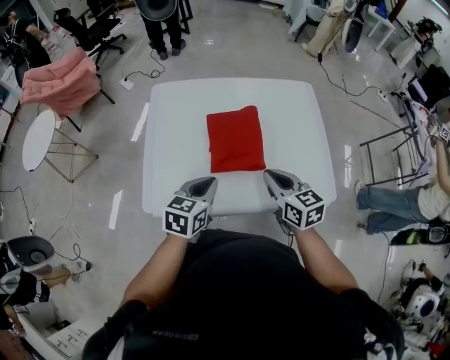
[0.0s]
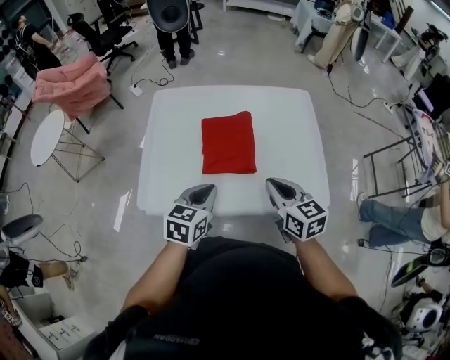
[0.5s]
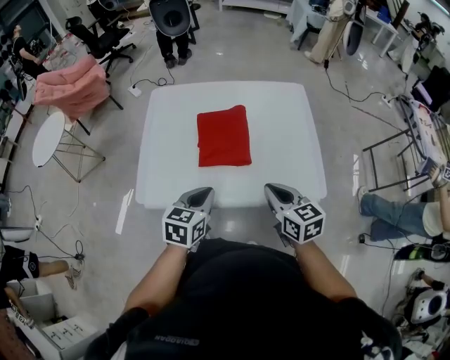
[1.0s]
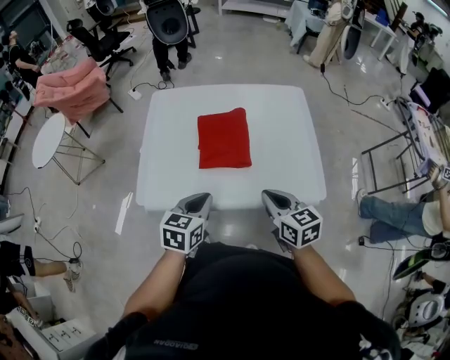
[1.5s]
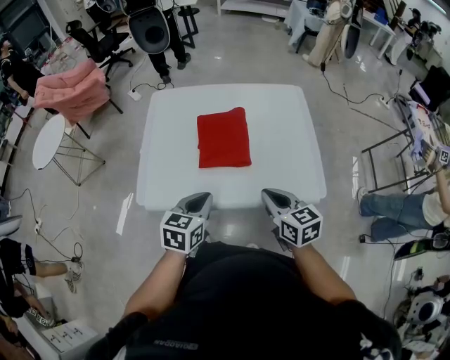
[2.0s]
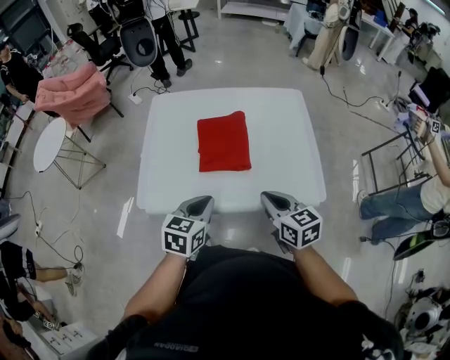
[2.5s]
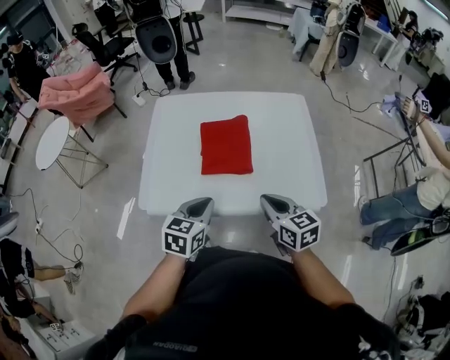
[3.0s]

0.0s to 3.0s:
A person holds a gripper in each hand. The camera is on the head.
0.0s to 1.5s: The left gripper goes about 10 cm backward. The right gripper shifts roughly 10 cm backward and to the right.
1.5s to 3.0s: Neither gripper changes place.

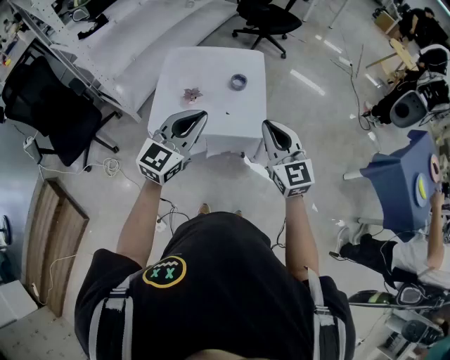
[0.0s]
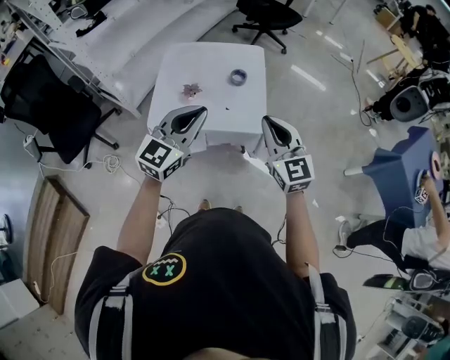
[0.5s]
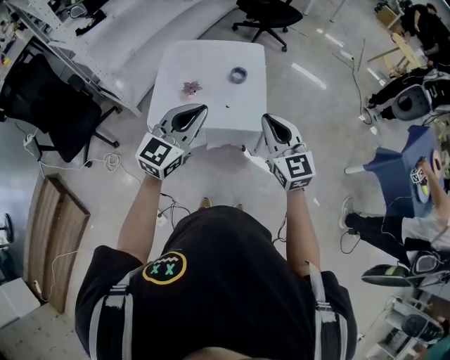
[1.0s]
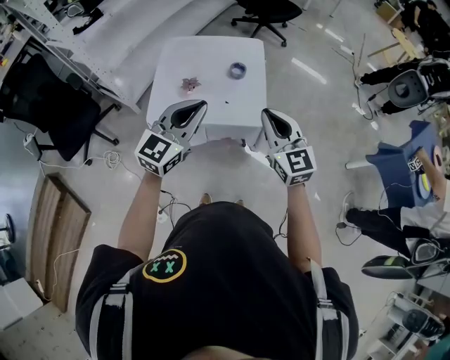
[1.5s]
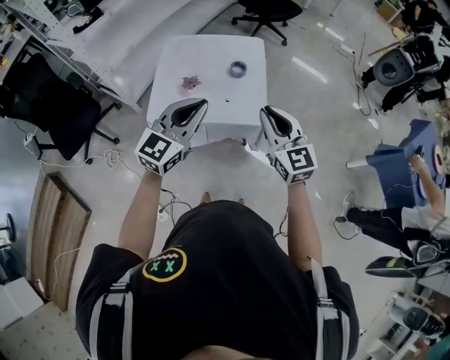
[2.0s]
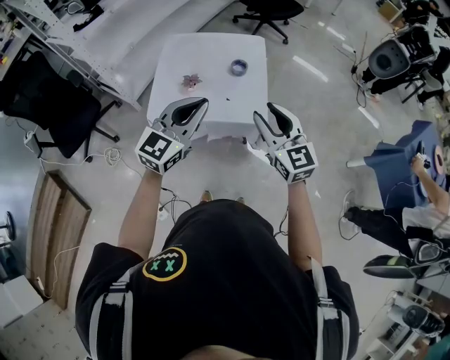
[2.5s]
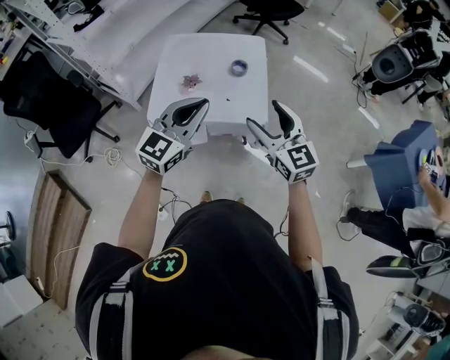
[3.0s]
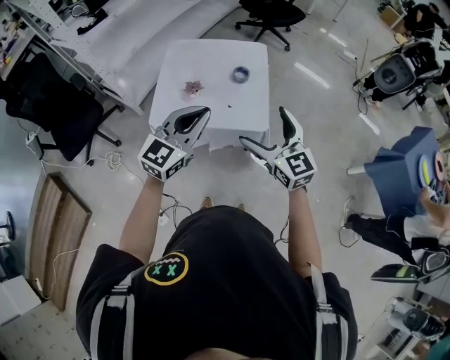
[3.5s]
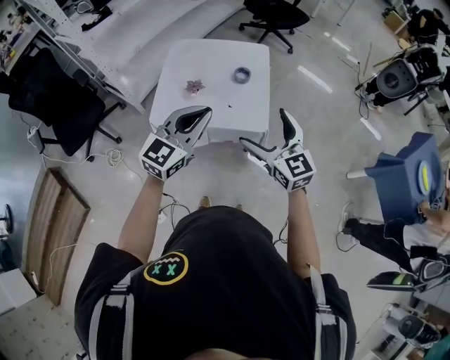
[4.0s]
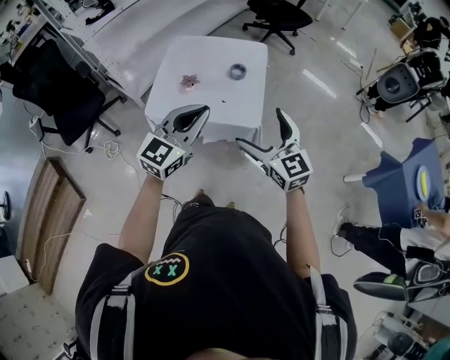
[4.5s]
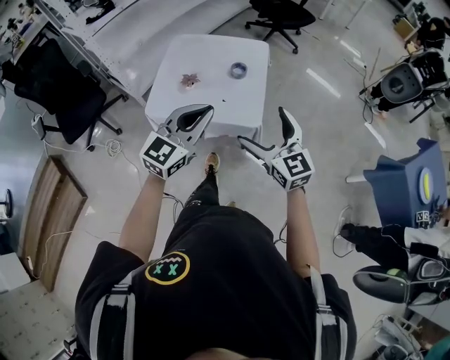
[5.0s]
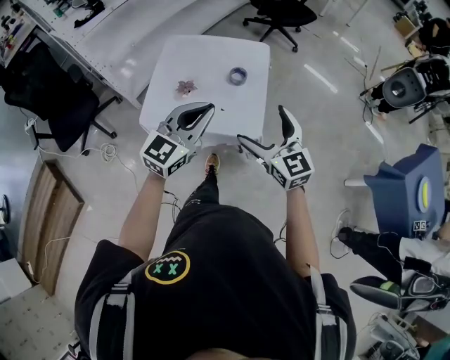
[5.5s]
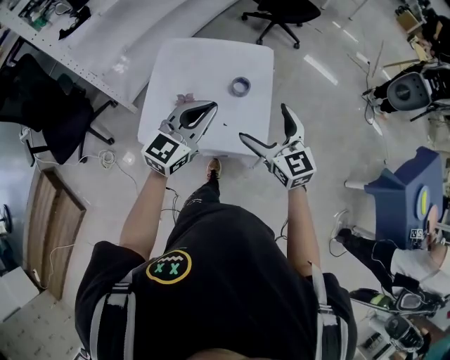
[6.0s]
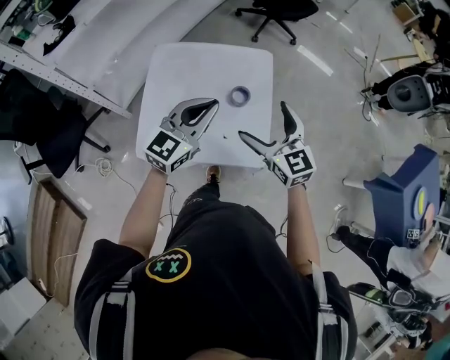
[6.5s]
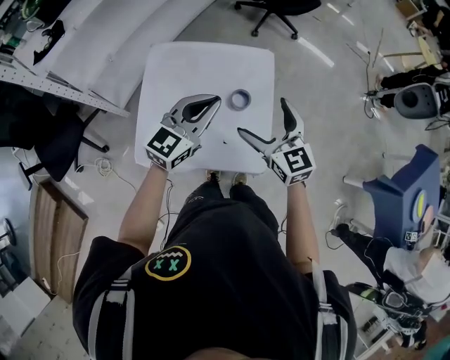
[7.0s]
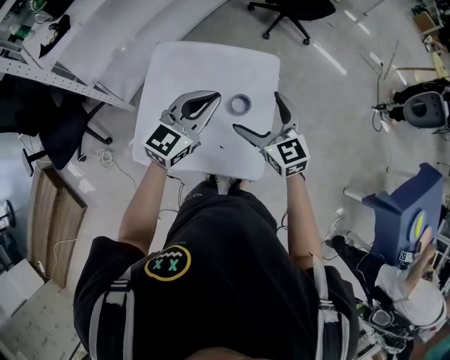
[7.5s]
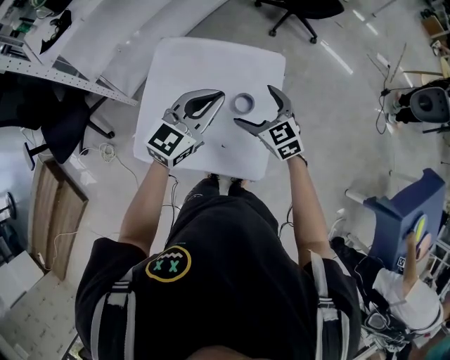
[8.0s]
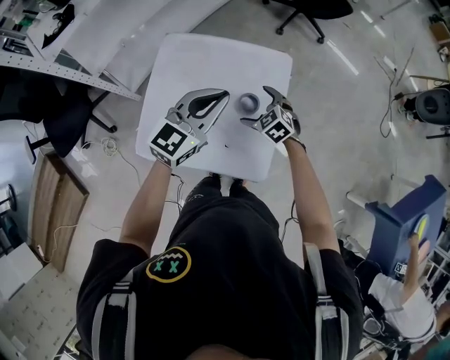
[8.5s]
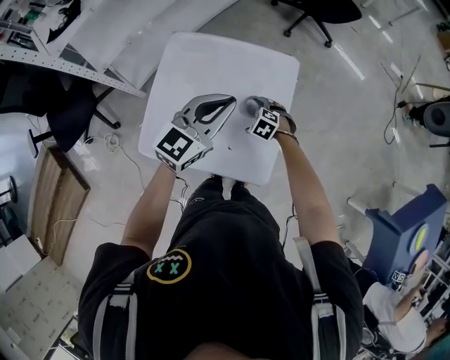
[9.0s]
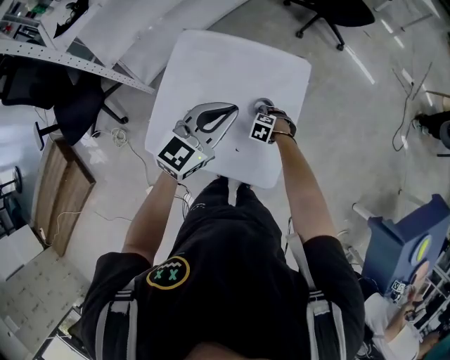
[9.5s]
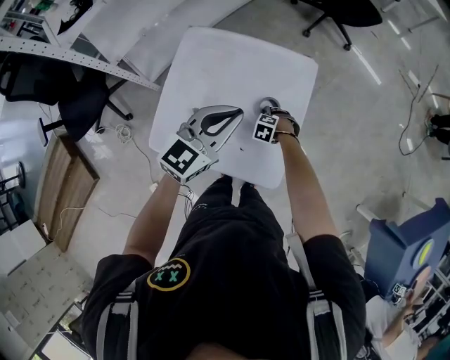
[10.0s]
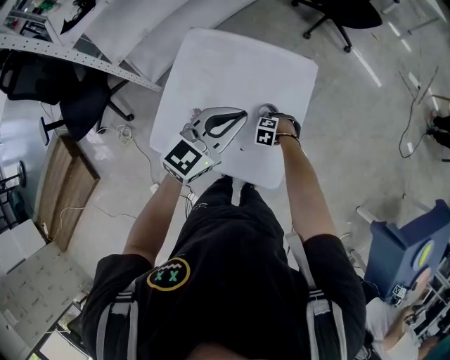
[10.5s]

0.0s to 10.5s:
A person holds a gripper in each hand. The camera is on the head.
0.0s to 2.0s: The grippers move only a little.
2.0s to 4.0s: The right gripper opens.
4.0s to 6.5s: The grippers both shift forward by approximately 30 cm.
6.5s to 8.5s: The right gripper shifts roughly 25 cm downward and forward, and tilts its fingers approximately 40 degrees downward. The left gripper goes roughly 10 cm forward.
8.5s to 10.5s: The right gripper heads downward, covering about 20 cm, angles its fingers downward, by about 30 degrees, and closes up.

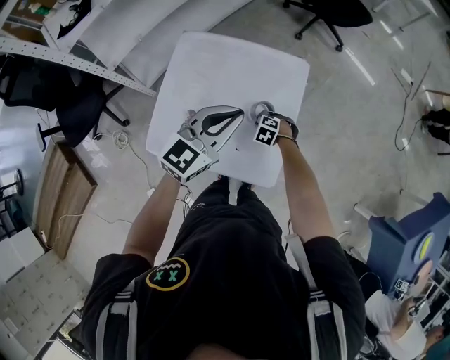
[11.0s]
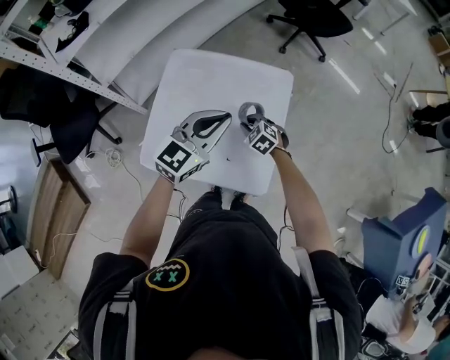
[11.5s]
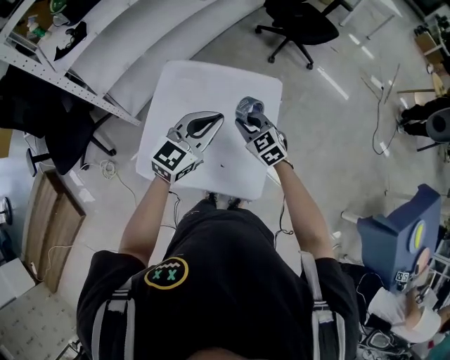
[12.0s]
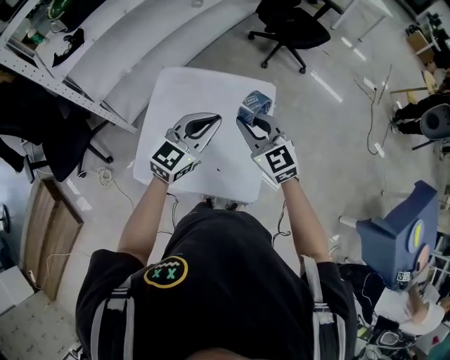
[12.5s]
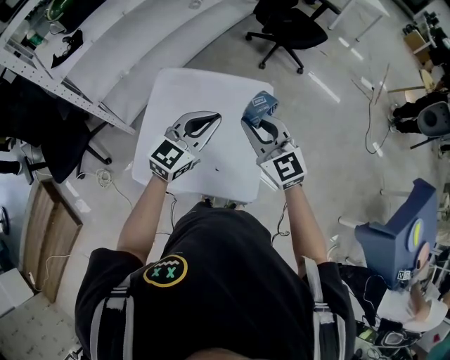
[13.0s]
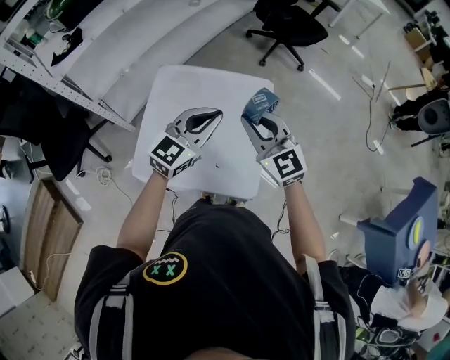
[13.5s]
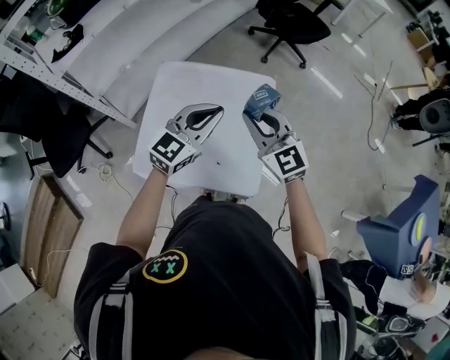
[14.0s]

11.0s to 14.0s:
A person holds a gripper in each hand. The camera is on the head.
11.0s to 12.5s: The right gripper shifts some 40 cm upward, and points its fingers approximately 60 degrees further upward.
12.5s to 14.0s: There are only small adjustments of the grippers.

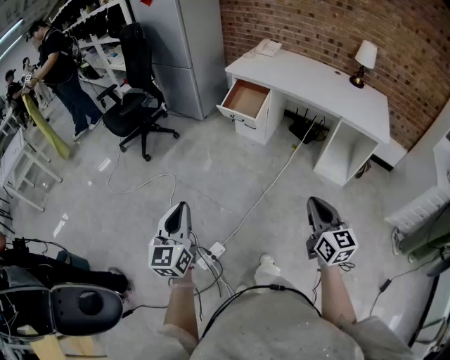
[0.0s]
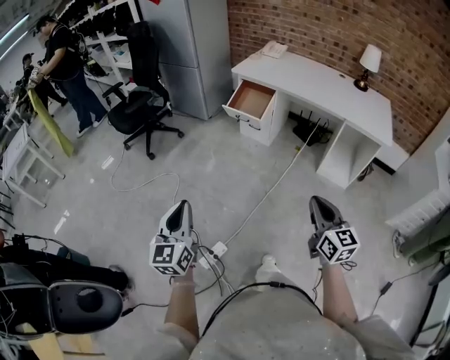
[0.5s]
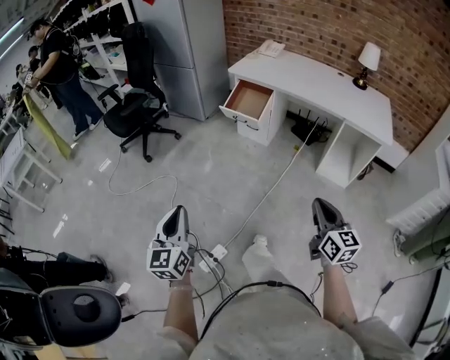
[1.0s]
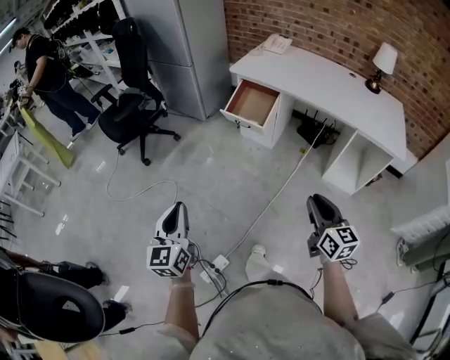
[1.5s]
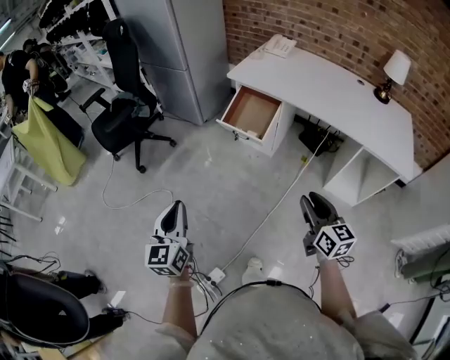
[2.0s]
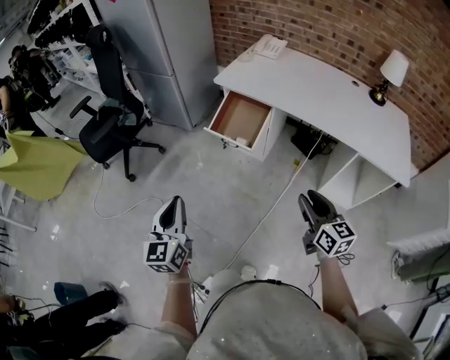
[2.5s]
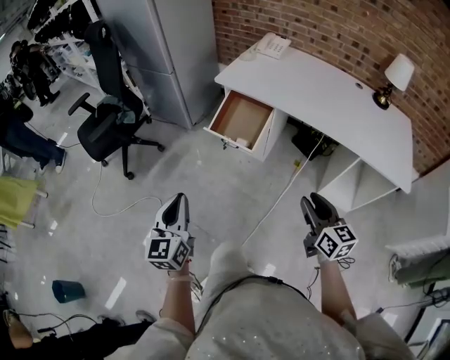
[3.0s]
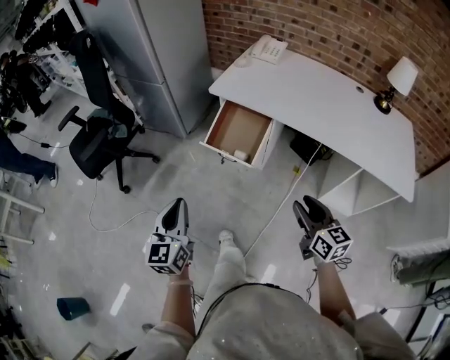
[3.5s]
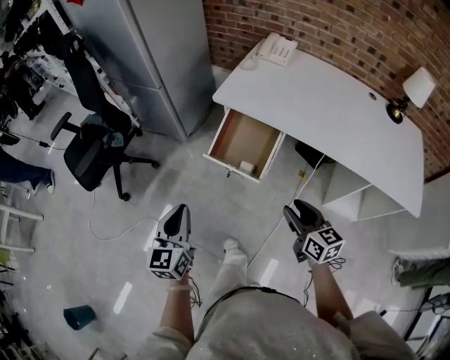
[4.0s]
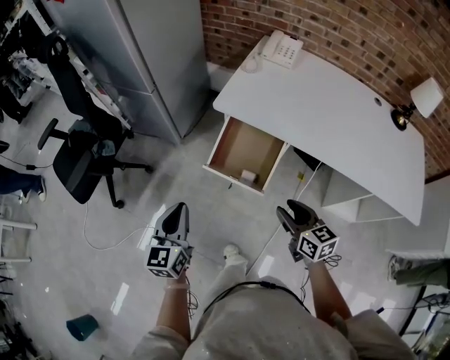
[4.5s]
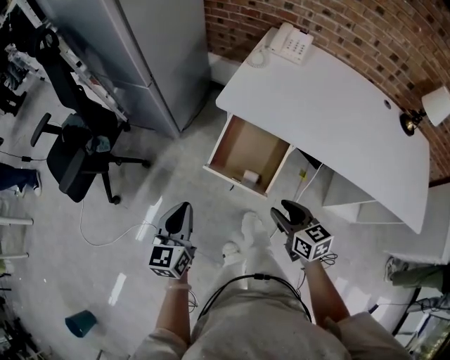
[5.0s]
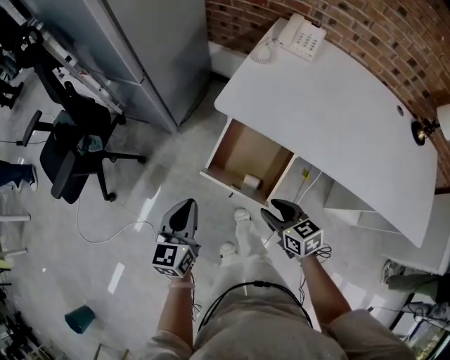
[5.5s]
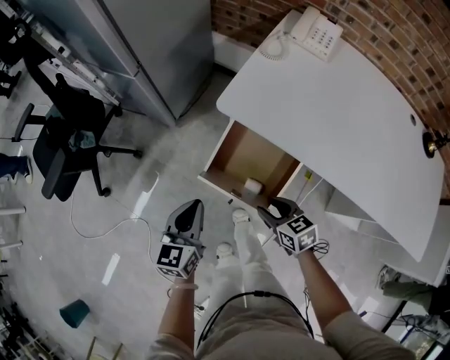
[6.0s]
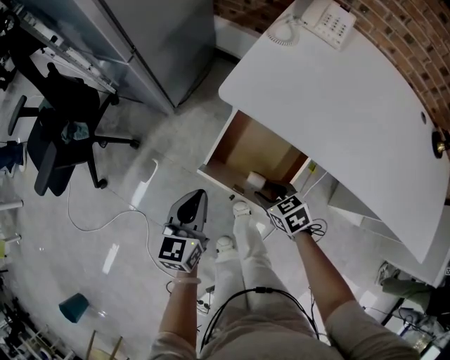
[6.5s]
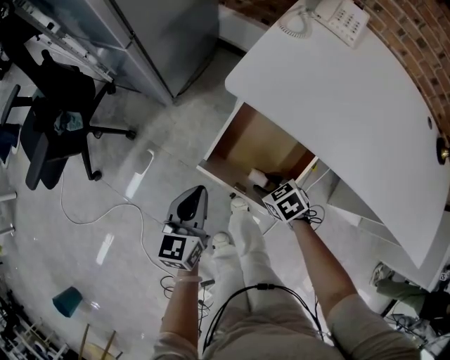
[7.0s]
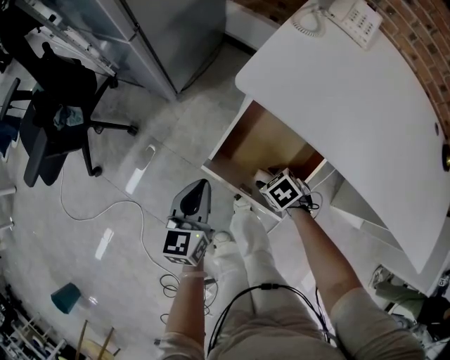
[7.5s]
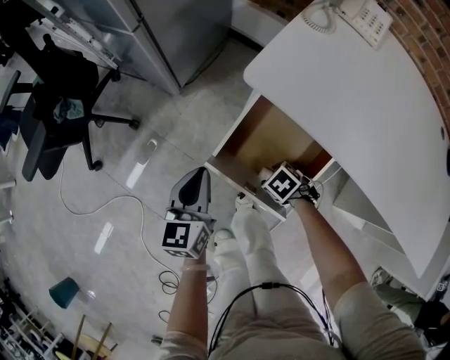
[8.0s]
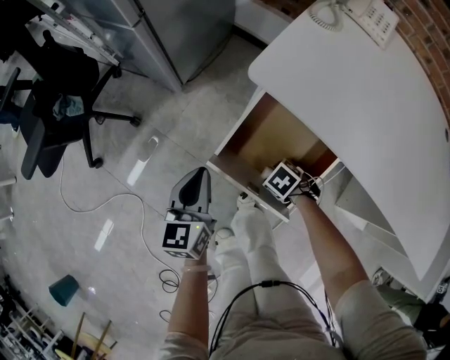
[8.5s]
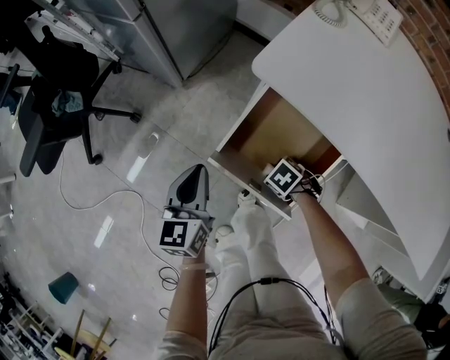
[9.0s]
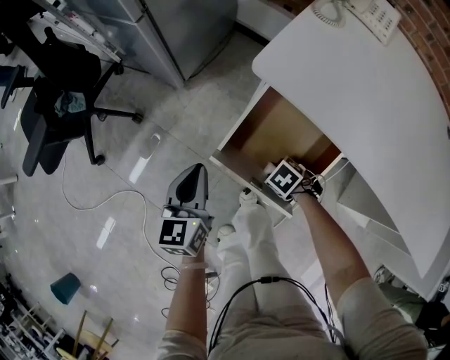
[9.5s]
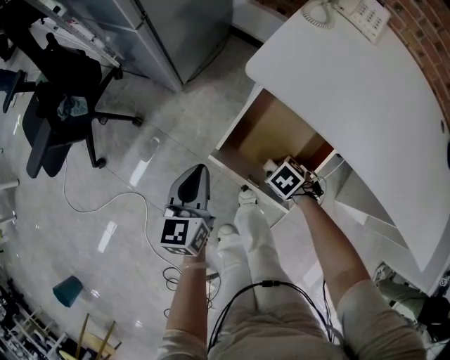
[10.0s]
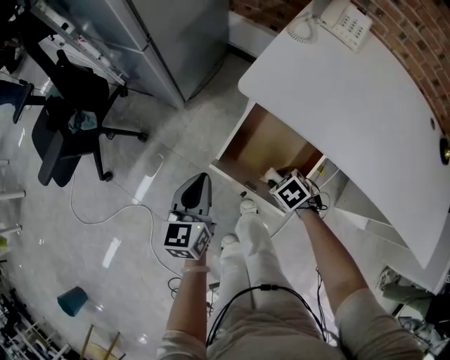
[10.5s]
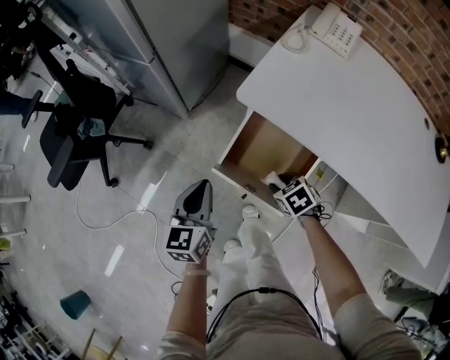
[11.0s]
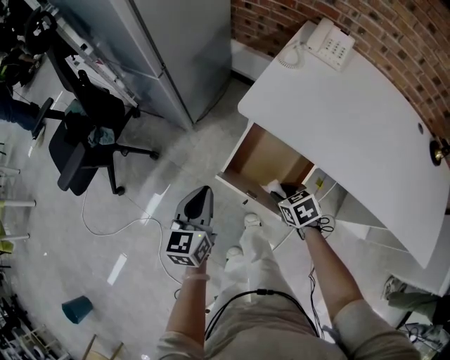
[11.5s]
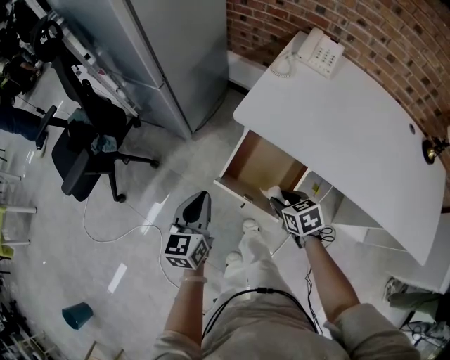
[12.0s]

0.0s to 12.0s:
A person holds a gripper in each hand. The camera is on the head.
0.0s to 2.0s: The grippers both shift forward by approximately 25 cm. The right gripper opens its fingers.
2.0s to 4.0s: Both grippers move forward, some 25 cm.
4.0s to 6.0s: Both grippers travel together forward and downward, about 25 cm. The right gripper changes its angle by about 30 degrees.
6.0s to 8.0s: The left gripper travels downward by roughly 10 cm, while the right gripper shifts about 20 cm downward, and tips its fingers downward by approximately 40 degrees.
8.0s to 10.0s: The grippers stay close to where they were, moving slightly.
10.0s to 12.0s: The right gripper goes some 20 cm upward, and changes its angle by some 40 degrees; the left gripper travels upward by roughly 10 cm.
